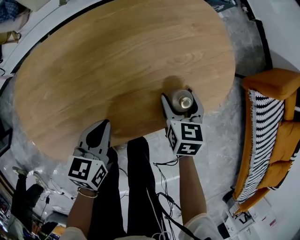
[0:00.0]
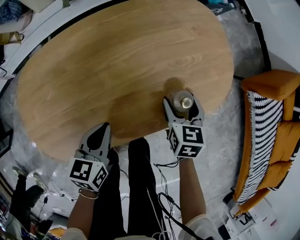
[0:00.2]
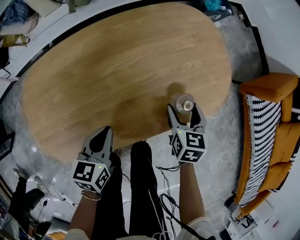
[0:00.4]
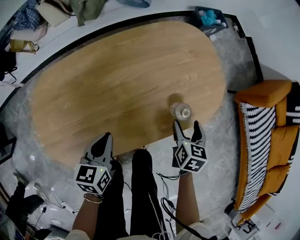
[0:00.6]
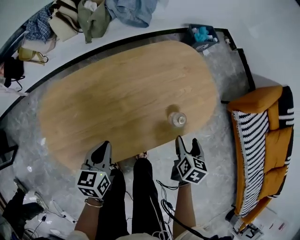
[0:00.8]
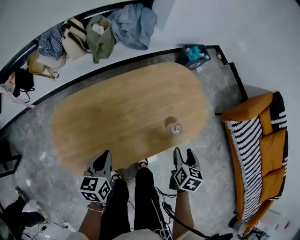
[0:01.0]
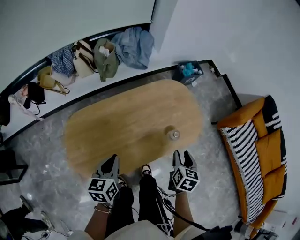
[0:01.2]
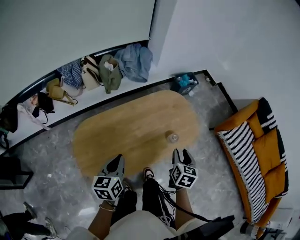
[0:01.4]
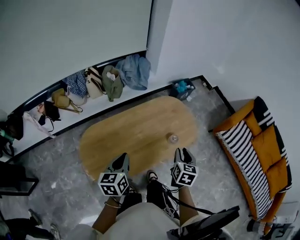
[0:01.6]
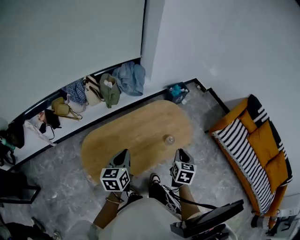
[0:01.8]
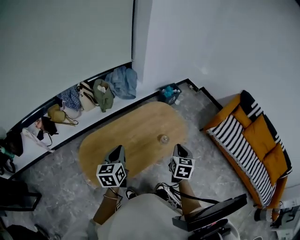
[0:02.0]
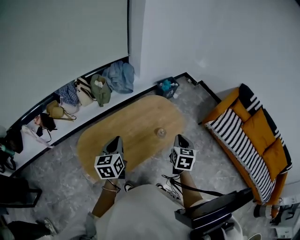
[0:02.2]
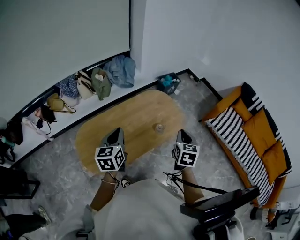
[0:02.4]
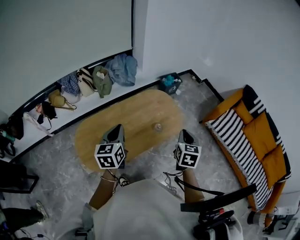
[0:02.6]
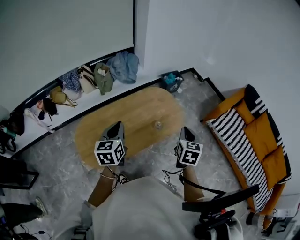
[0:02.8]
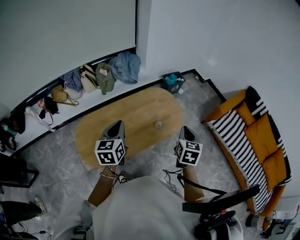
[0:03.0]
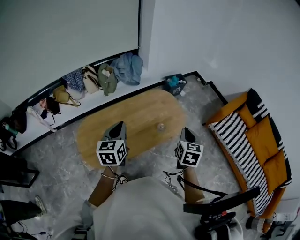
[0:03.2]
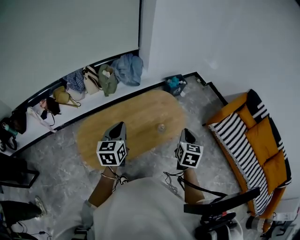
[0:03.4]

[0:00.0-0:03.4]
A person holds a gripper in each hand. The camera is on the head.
0:00.0 to 0:01.6: The right gripper heads upward and backward, covering roughly 40 cm, swivels approximately 30 degrees, and closes up; the left gripper heads upward, covering about 35 cm.
0:01.6 to 0:03.4: Both grippers move upward and to the right, roughly 15 cm.

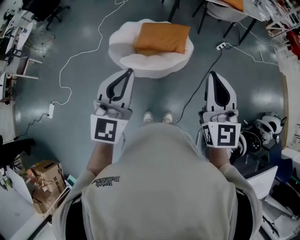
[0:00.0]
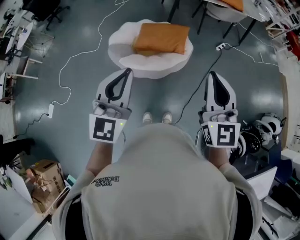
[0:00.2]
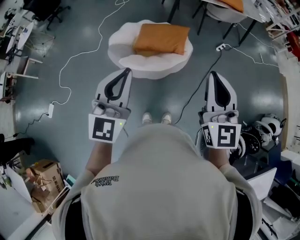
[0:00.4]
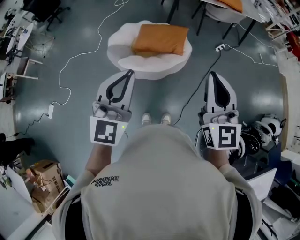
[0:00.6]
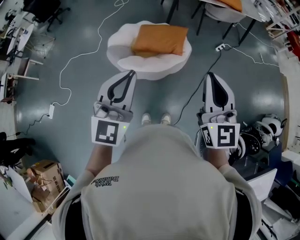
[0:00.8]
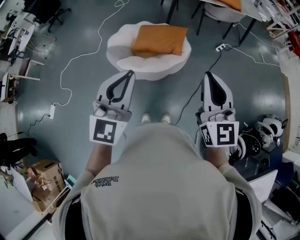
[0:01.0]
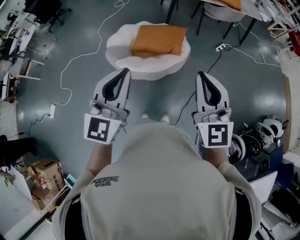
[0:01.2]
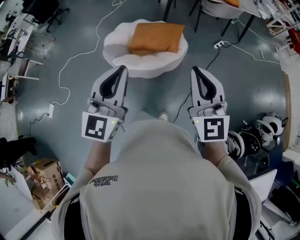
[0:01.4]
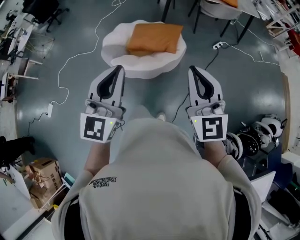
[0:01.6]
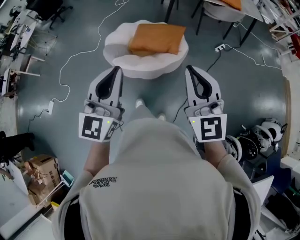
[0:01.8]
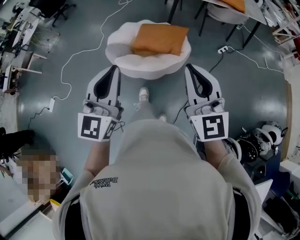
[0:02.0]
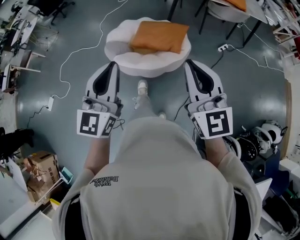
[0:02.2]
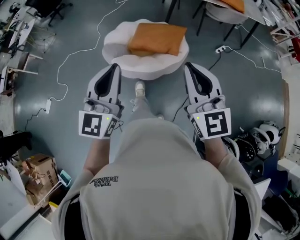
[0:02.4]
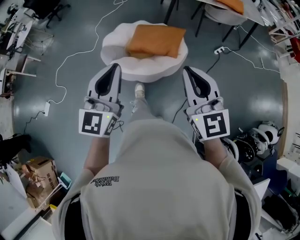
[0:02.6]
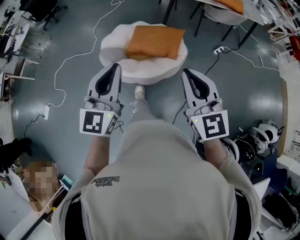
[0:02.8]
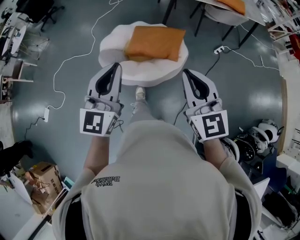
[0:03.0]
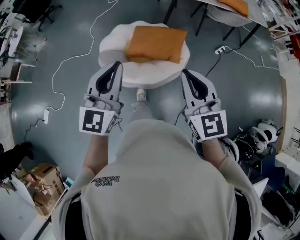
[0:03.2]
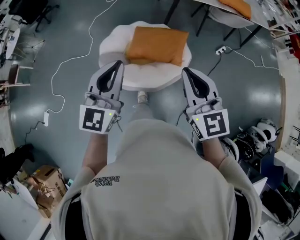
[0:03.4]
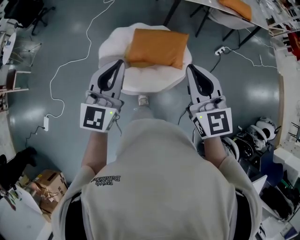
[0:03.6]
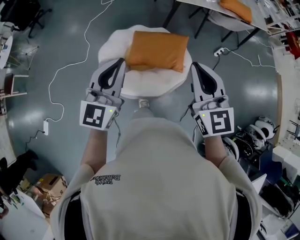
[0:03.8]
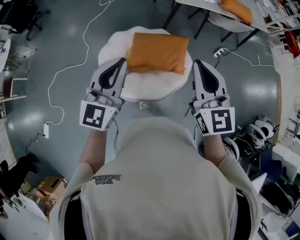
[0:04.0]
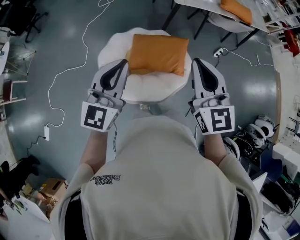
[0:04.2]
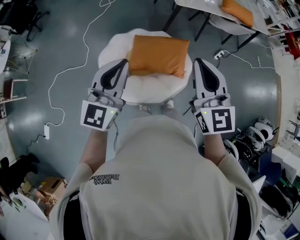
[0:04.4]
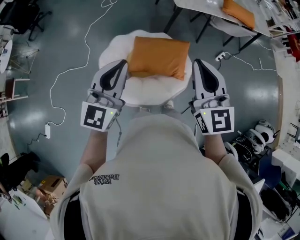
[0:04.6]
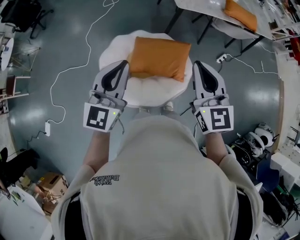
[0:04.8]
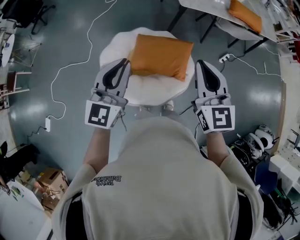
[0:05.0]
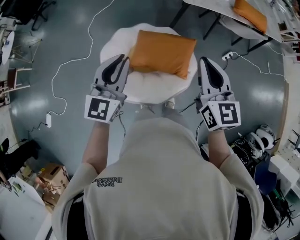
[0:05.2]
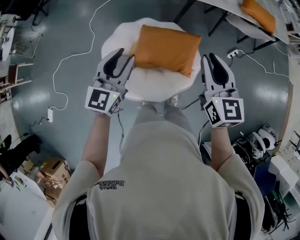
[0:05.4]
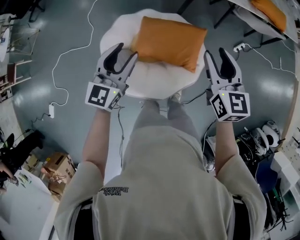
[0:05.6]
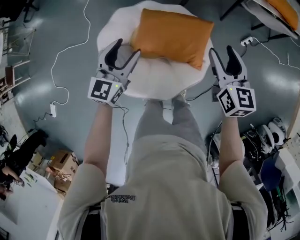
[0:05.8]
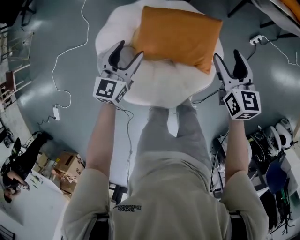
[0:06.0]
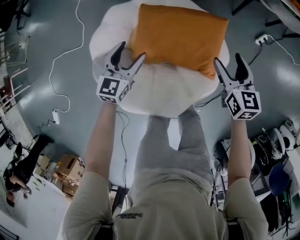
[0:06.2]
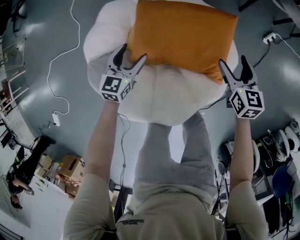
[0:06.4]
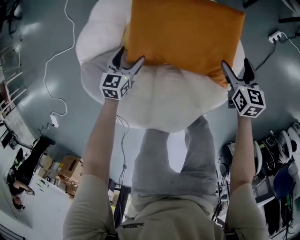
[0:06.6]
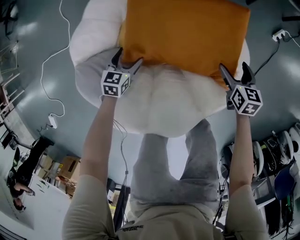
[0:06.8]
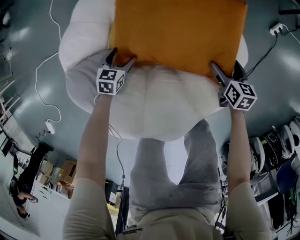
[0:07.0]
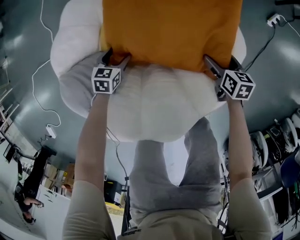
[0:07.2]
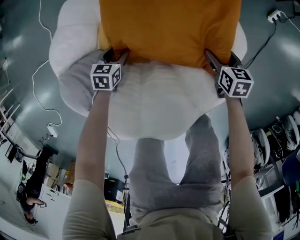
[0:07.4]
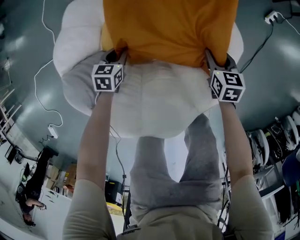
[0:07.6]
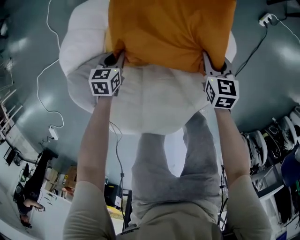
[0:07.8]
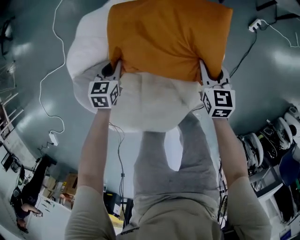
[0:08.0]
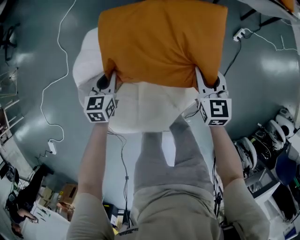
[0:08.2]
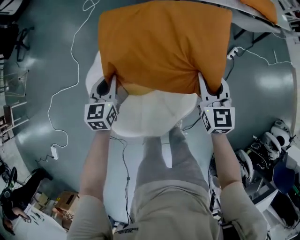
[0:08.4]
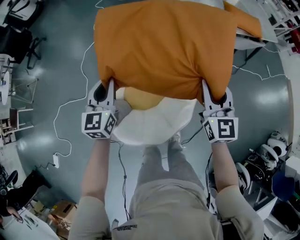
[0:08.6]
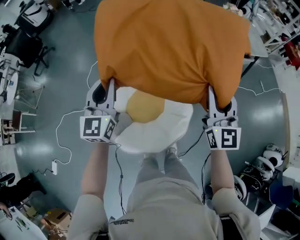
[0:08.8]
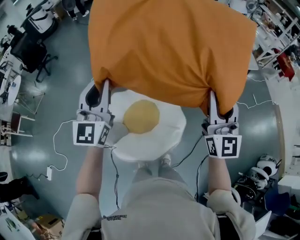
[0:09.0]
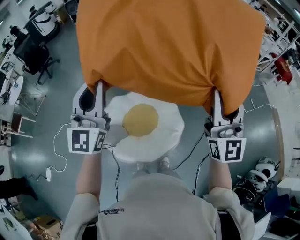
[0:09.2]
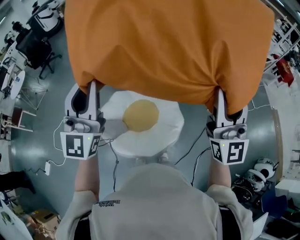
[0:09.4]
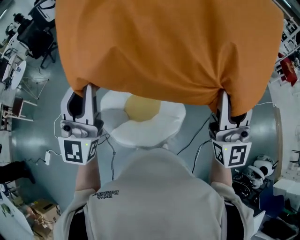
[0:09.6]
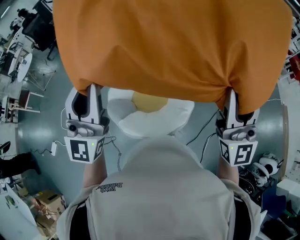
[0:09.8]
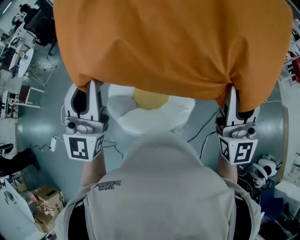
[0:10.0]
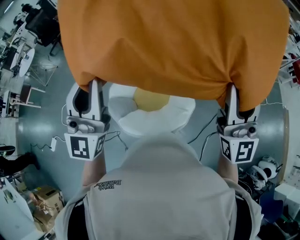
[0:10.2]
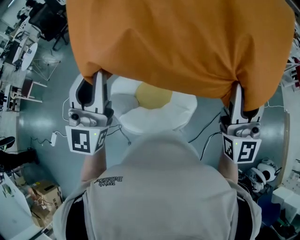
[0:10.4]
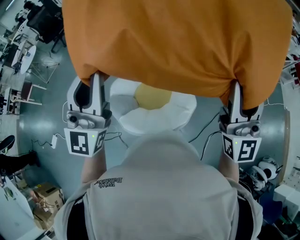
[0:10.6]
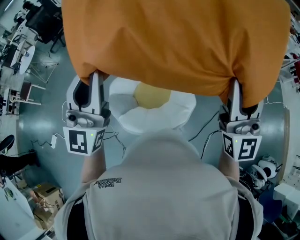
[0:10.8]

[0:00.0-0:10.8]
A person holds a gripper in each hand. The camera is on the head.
0:00.0 to 0:01.6: The right gripper moves to the right, about 5 cm. Meanwhile the left gripper is displaced to the right by some 10 cm.
0:01.6 to 0:03.0: Both grippers move forward, roughly 15 cm.
0:03.0 to 0:04.6: Both grippers travel together forward, some 25 cm.
0:04.6 to 0:06.2: Both grippers travel together downward and forward, roughly 50 cm. The right gripper changes its angle by about 30 degrees, and opens. Meanwhile the left gripper turns by some 30 degrees, and opens up.
0:06.2 to 0:07.8: The grippers both shift downward by roughly 25 cm. The right gripper closes, while the left gripper rotates roughly 30 degrees, and closes up.
0:07.8 to 0:09.2: Both grippers travel together upward, some 90 cm. The left gripper points its fingers roughly 70 degrees further upward. The right gripper tips its fingers upward by about 70 degrees.
0:09.2 to 0:10.8: The left gripper heads backward, covering approximately 10 cm.

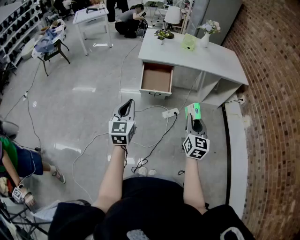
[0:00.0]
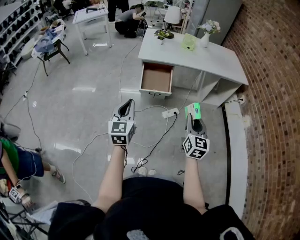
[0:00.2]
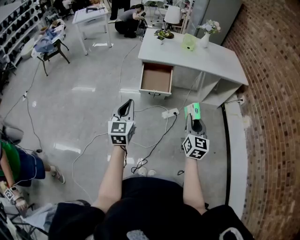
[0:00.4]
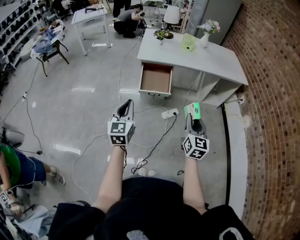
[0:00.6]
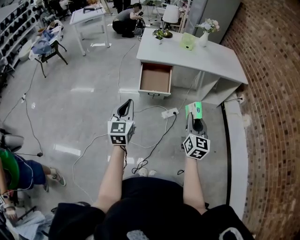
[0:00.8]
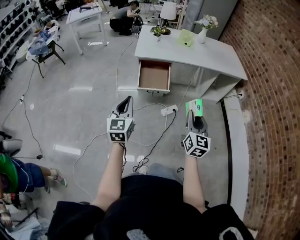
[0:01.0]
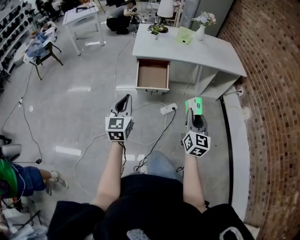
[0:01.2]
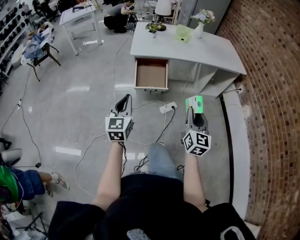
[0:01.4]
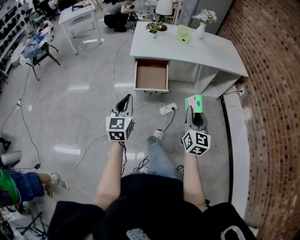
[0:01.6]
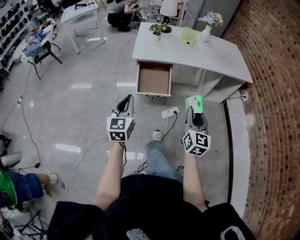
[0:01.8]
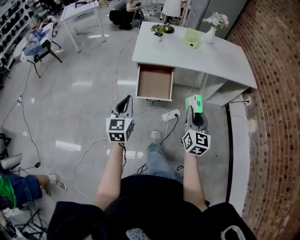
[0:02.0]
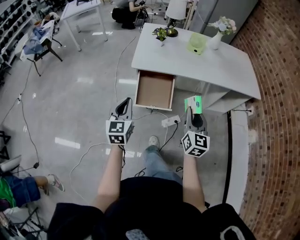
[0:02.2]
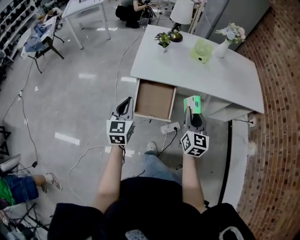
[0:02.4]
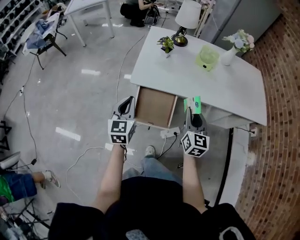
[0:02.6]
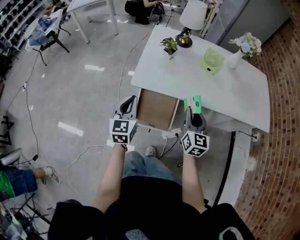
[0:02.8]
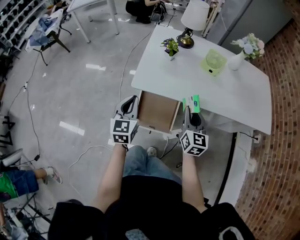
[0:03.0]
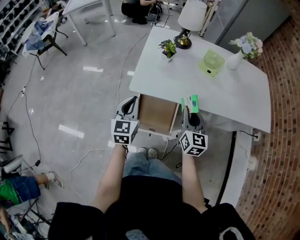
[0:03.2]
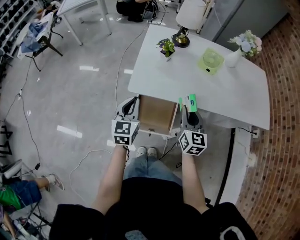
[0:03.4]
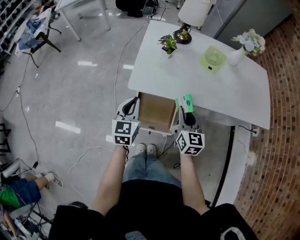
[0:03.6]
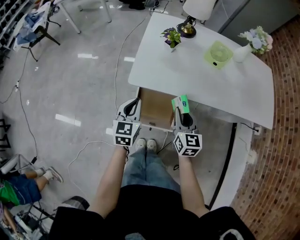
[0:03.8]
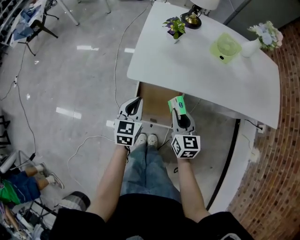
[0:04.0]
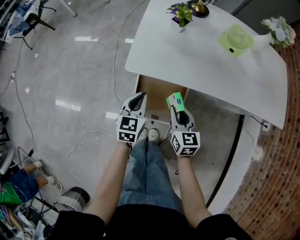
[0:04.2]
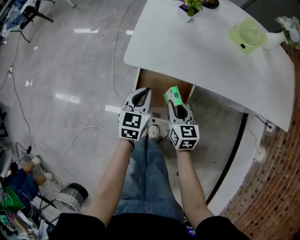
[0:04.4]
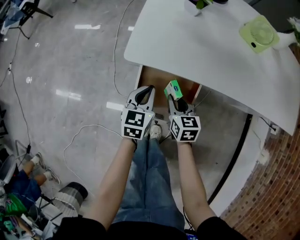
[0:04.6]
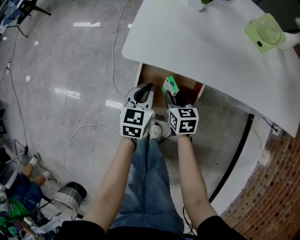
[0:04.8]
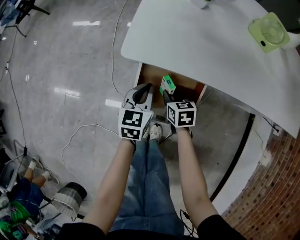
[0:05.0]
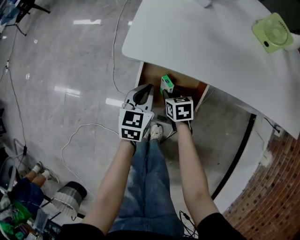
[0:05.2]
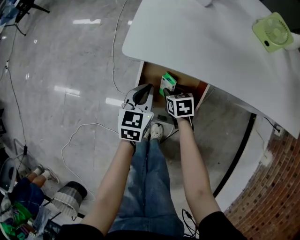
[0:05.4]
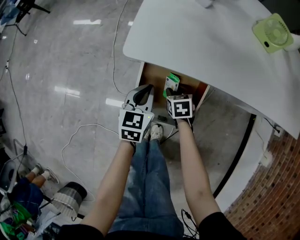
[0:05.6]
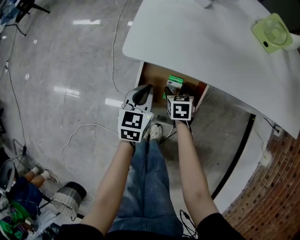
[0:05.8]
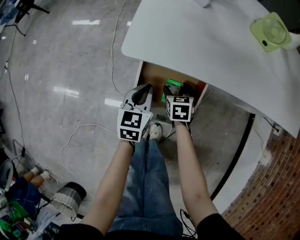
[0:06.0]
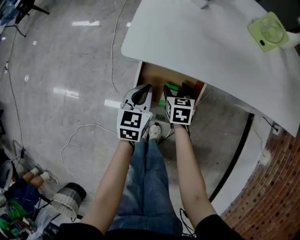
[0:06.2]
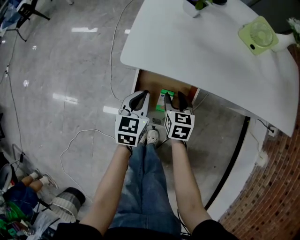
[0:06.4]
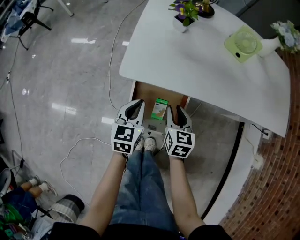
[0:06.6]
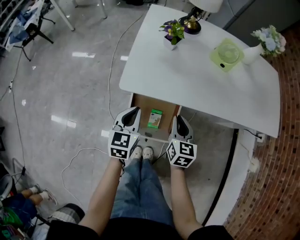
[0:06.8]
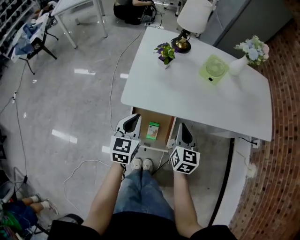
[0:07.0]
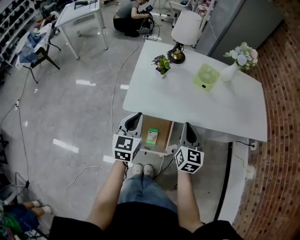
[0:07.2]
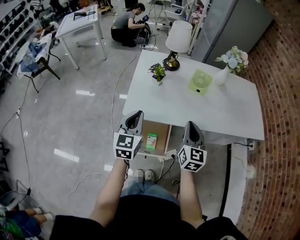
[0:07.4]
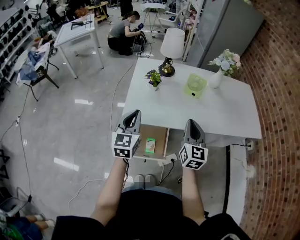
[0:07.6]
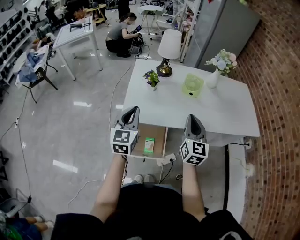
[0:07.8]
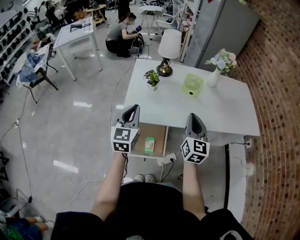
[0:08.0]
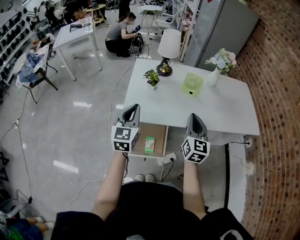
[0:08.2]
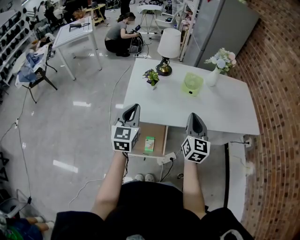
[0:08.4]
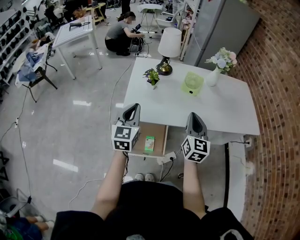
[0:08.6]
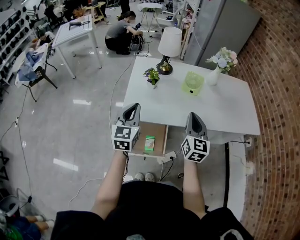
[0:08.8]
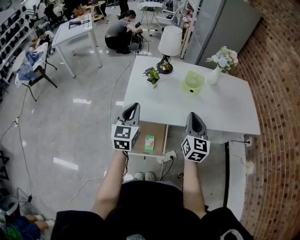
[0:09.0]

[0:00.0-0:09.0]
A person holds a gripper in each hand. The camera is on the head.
0:00.0 to 0:01.6: Both grippers move forward, roughly 10 cm.
0:01.6 to 0:03.0: The pair of grippers is taken forward, approximately 40 cm.
0:03.0 to 0:04.4: The two grippers go about 25 cm downward. The right gripper turns by roughly 20 degrees.
0:04.4 to 0:06.0: The right gripper is displaced downward and forward by approximately 20 cm, rotates about 20 degrees, and opens its fingers. Meanwhile the left gripper travels downward by some 10 cm.
0:06.0 to 0:07.6: The grippers both shift upward by roughly 50 cm. The right gripper tilts its fingers about 50 degrees upward, and closes, while the left gripper rotates some 30 degrees.
0:07.6 to 0:09.0: The grippers move only a little.
